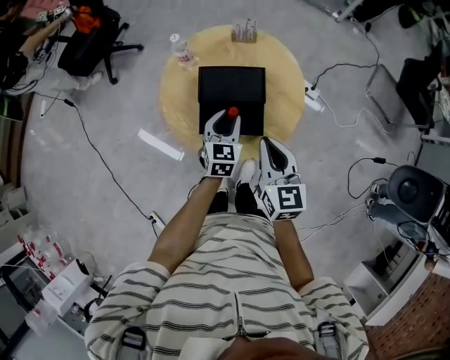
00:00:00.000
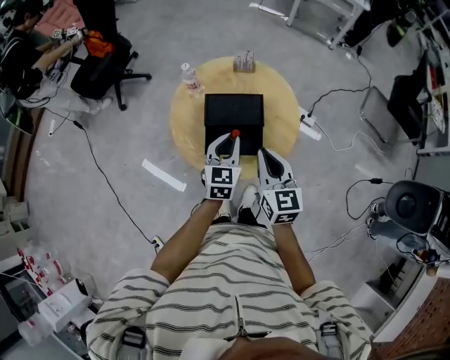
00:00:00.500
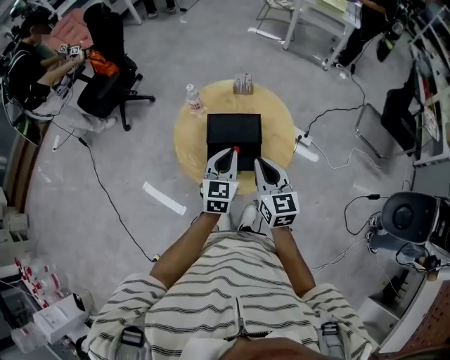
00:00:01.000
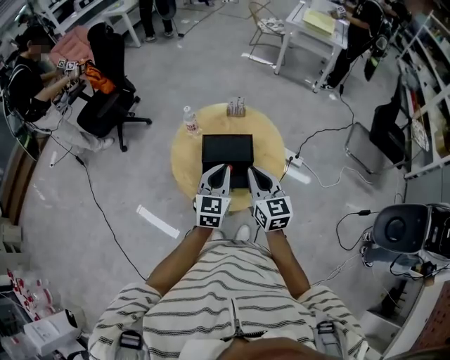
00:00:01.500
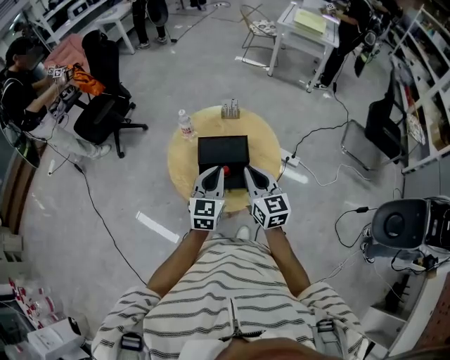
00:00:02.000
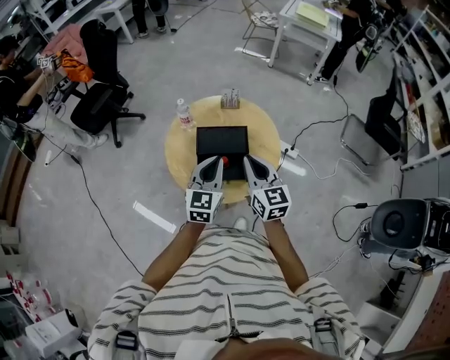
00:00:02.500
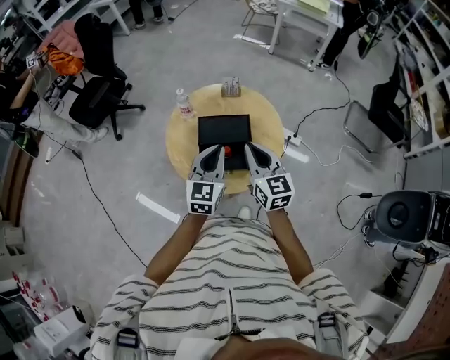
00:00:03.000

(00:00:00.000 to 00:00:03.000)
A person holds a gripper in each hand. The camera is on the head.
00:00:00.000 - 00:00:01.500: The left gripper moves upward, roughly 15 cm, and closes up; the right gripper moves upward, approximately 5 cm.
00:00:01.500 - 00:00:03.000: The grippers move only a little.

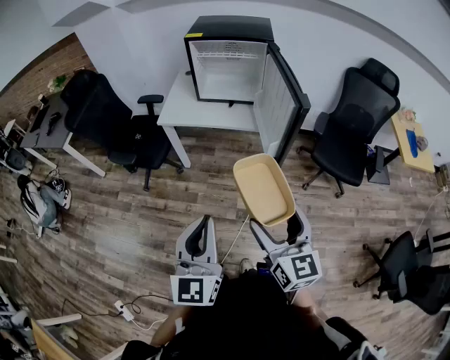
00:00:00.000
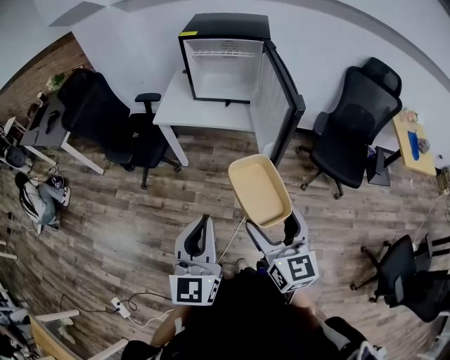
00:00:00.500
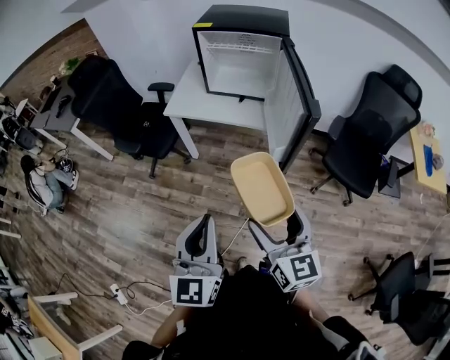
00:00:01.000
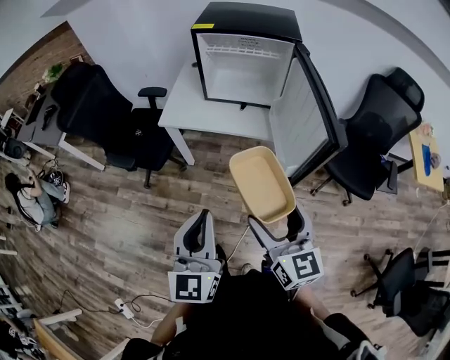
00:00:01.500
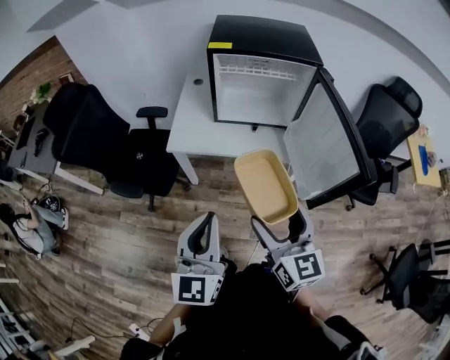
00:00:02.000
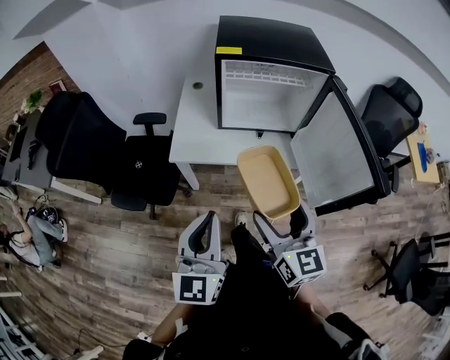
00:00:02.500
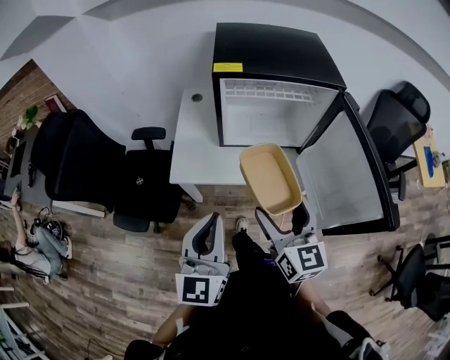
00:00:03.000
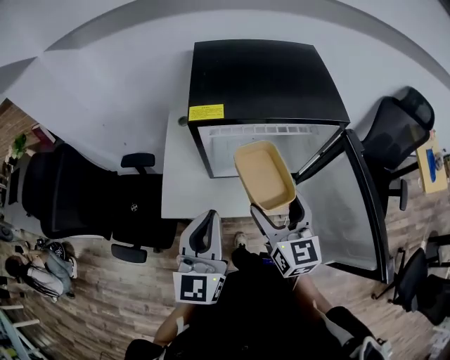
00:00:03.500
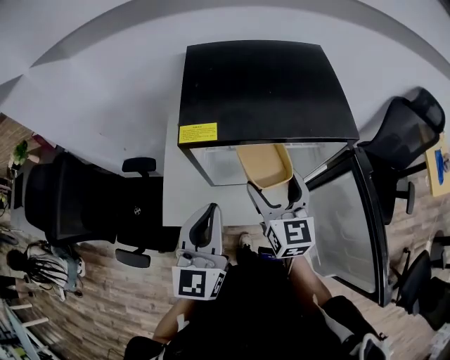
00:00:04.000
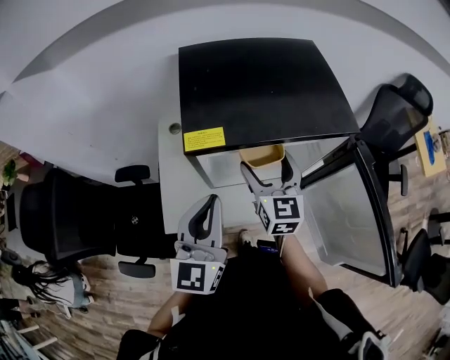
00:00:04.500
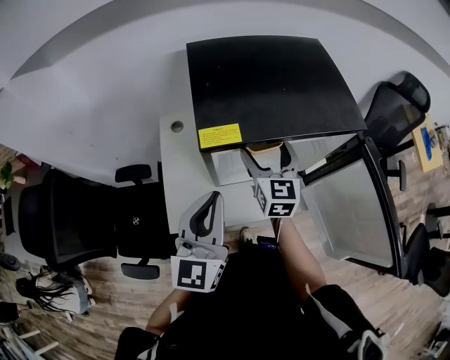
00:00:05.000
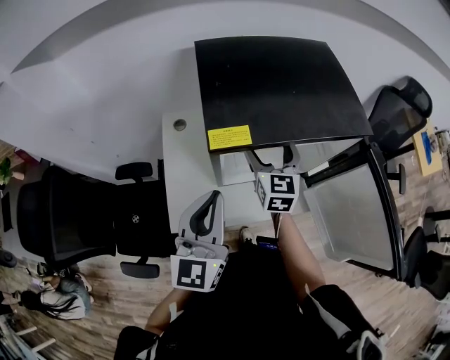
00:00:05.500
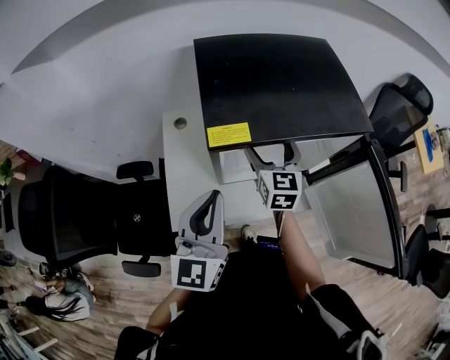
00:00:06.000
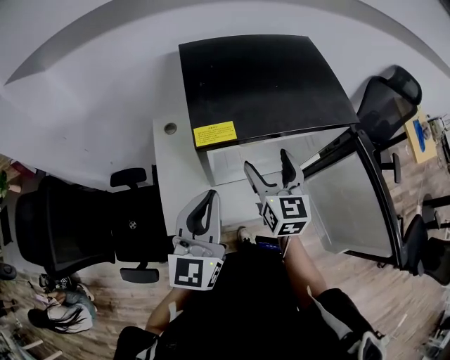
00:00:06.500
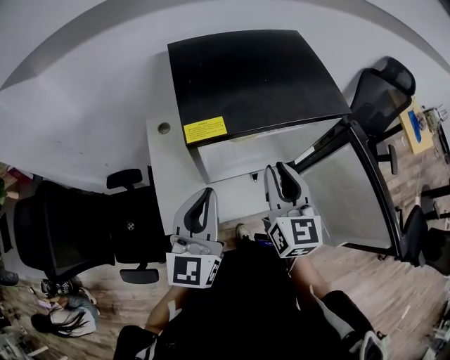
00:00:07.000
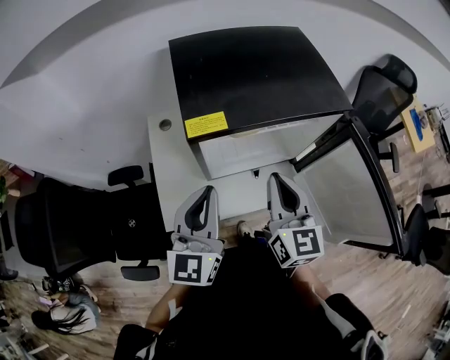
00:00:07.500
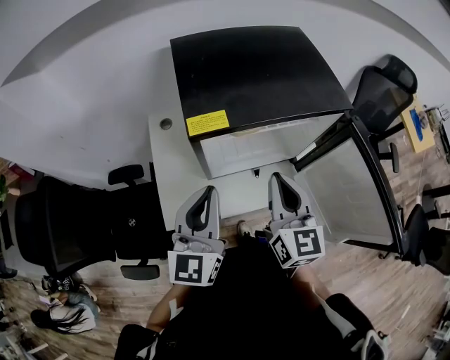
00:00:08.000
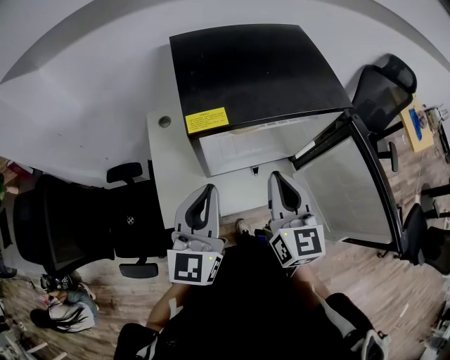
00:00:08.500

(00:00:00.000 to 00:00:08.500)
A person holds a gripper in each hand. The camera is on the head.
00:00:00.000 - 00:00:02.000: The left gripper goes some 30 cm forward. The right gripper goes roughly 30 cm forward and to the left.
00:00:02.000 - 00:00:04.000: The two grippers travel together, forward, some 40 cm.
00:00:04.000 - 00:00:06.500: The right gripper goes forward and returns, approximately 10 cm each way. Meanwhile the left gripper shifts some 5 cm to the left.
00:00:06.500 - 00:00:08.500: The right gripper goes about 10 cm backward, and closes.

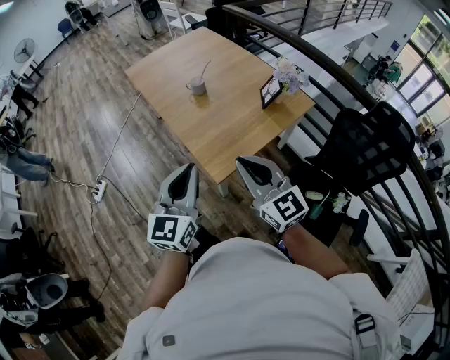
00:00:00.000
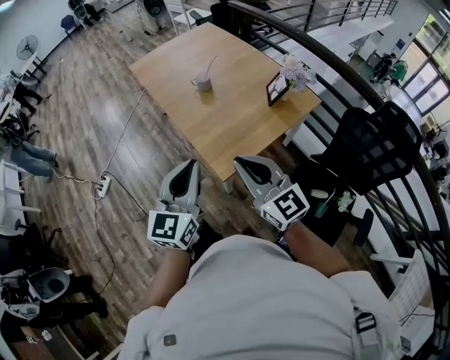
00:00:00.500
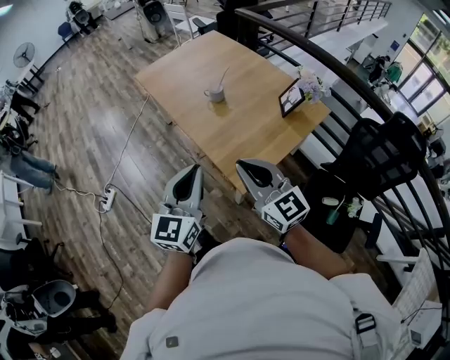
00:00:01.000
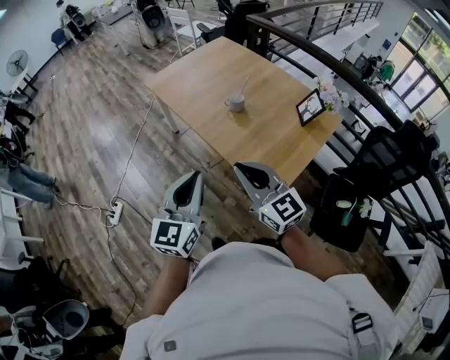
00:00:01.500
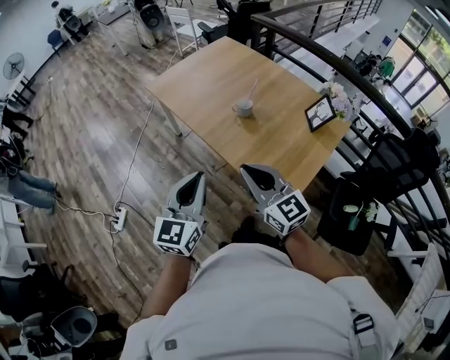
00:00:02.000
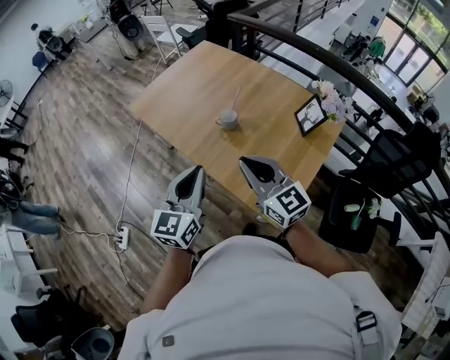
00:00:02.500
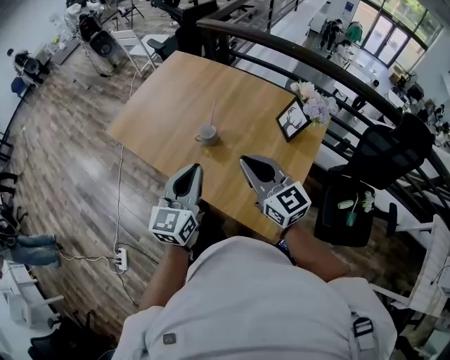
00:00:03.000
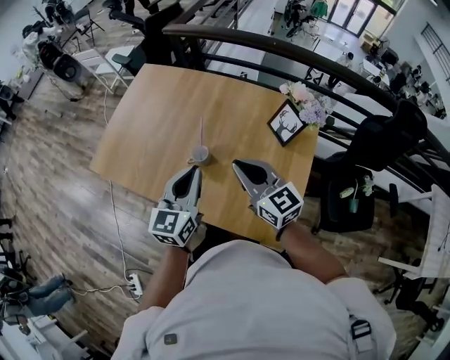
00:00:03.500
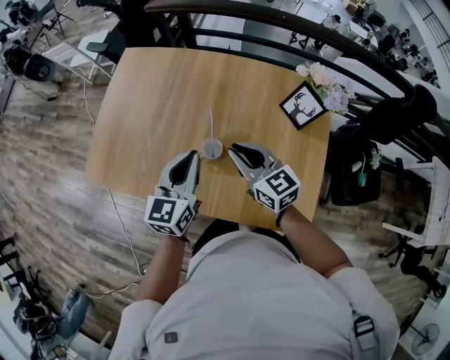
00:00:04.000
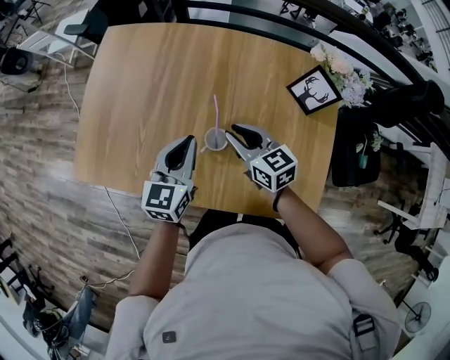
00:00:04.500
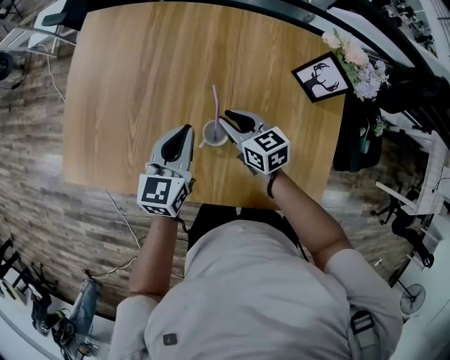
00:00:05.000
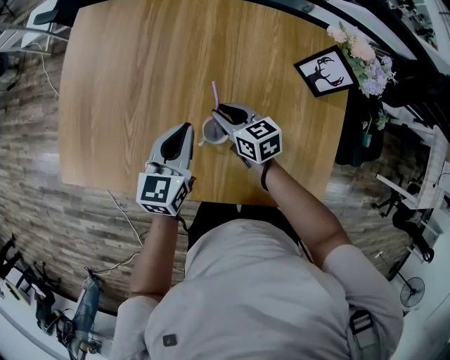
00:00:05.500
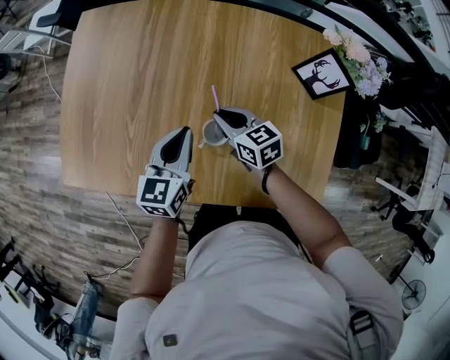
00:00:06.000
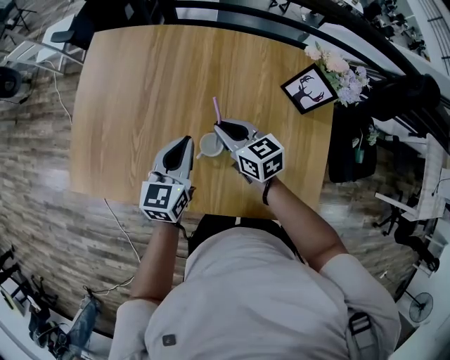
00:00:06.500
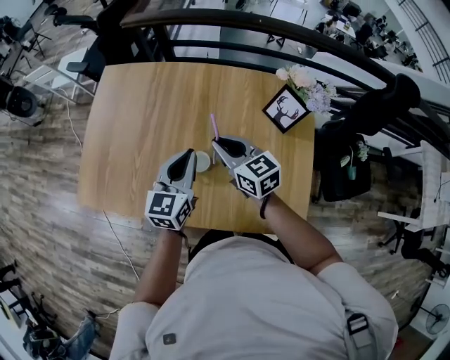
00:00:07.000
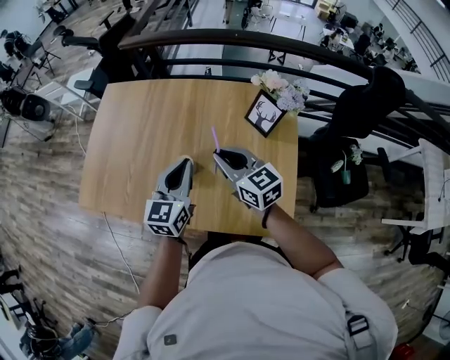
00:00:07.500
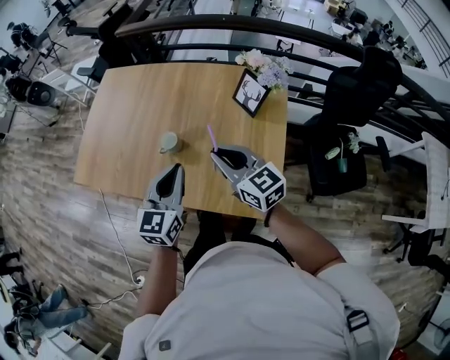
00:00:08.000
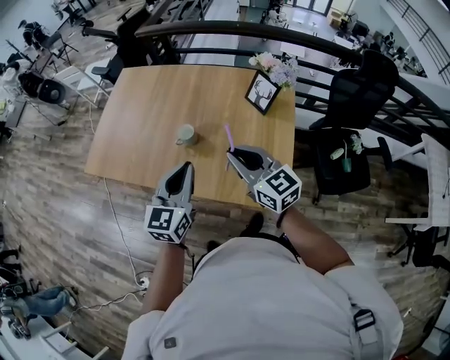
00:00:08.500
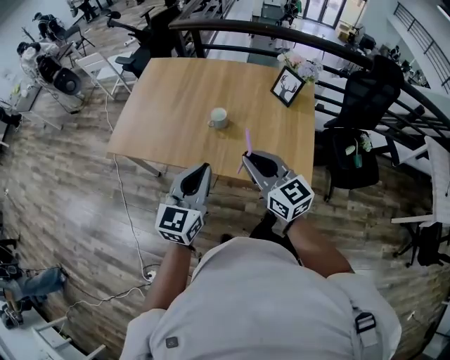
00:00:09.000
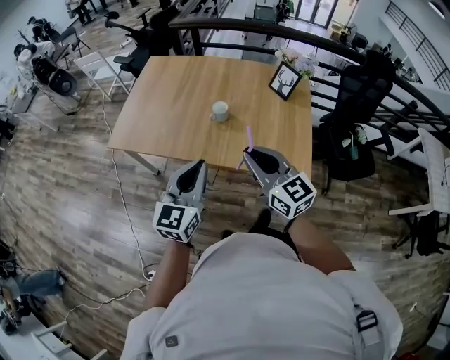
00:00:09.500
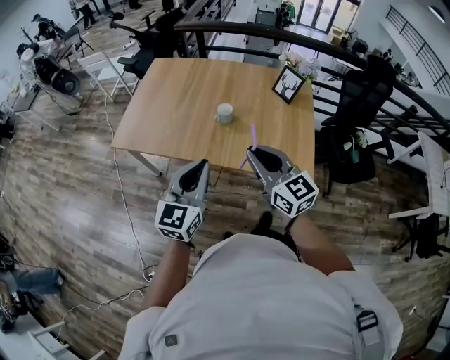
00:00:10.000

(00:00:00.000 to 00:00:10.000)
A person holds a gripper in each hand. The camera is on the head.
00:00:00.000 - 00:00:02.000: The two grippers go roughly 35 cm to the left and forward.
00:00:02.000 - 00:00:04.000: The pair of grippers is taken some 50 cm. The left gripper rotates approximately 30 degrees; the right gripper rotates approximately 30 degrees.
00:00:04.000 - 00:00:06.000: Both grippers travel together downward and forward, roughly 20 cm. The right gripper turns by approximately 20 degrees.
00:00:06.000 - 00:00:08.000: The left gripper goes some 35 cm backward, upward and to the right. The right gripper is displaced upward, backward and to the right by roughly 40 cm, and changes its angle by some 30 degrees.
00:00:08.000 - 00:00:10.000: The left gripper heads to the left, backward and upward, covering about 20 cm, while the right gripper is displaced backward, to the left and upward by about 20 cm.

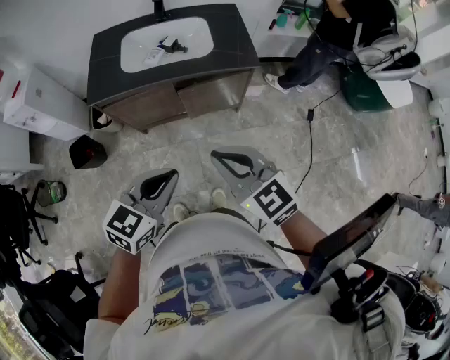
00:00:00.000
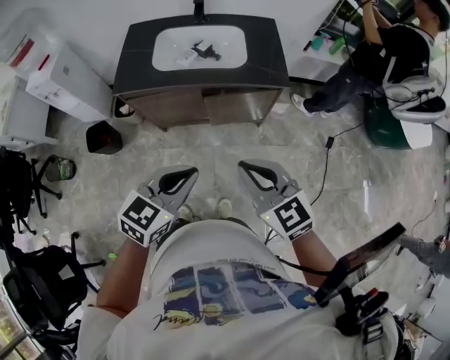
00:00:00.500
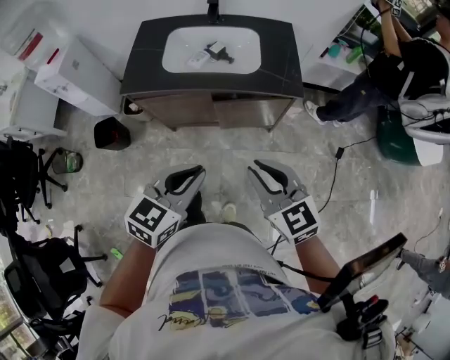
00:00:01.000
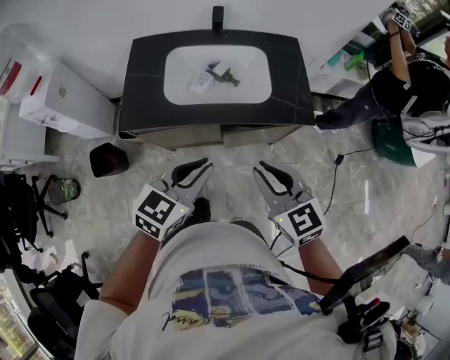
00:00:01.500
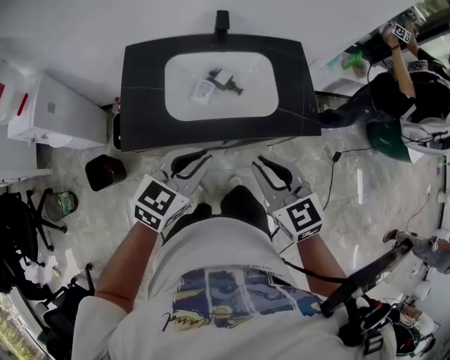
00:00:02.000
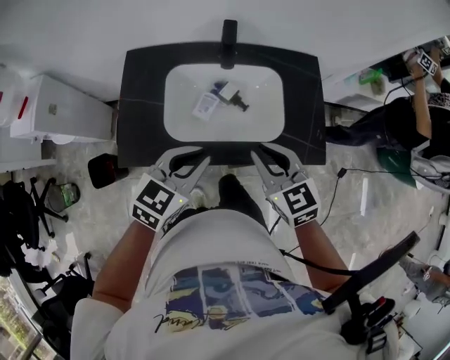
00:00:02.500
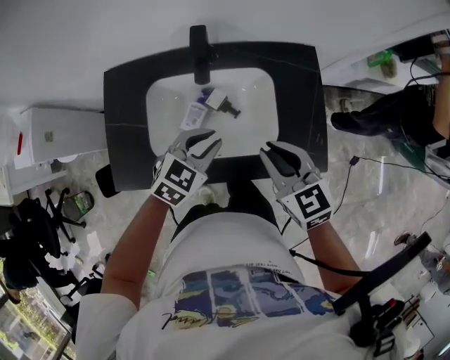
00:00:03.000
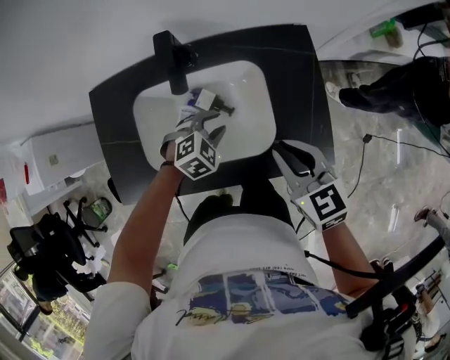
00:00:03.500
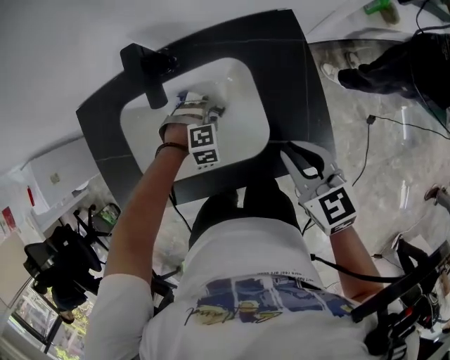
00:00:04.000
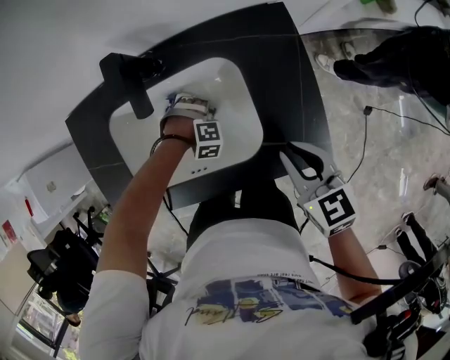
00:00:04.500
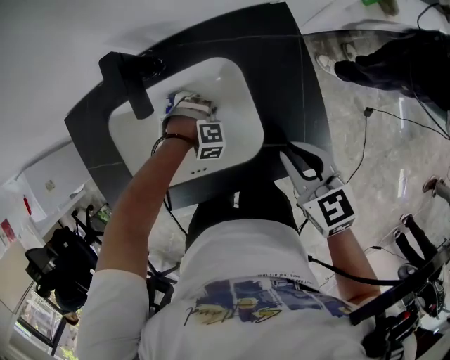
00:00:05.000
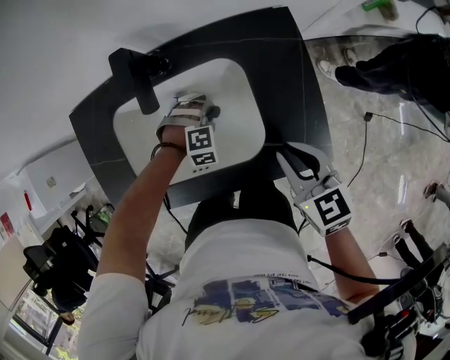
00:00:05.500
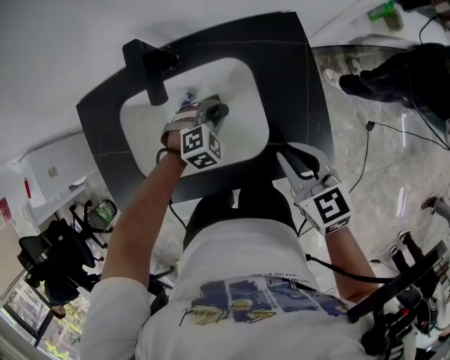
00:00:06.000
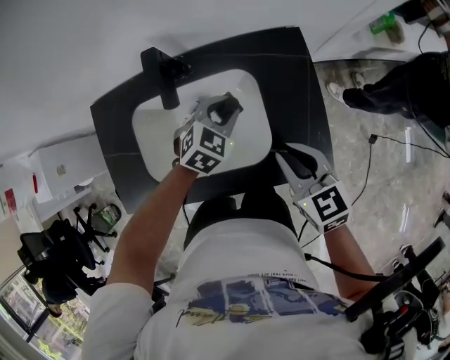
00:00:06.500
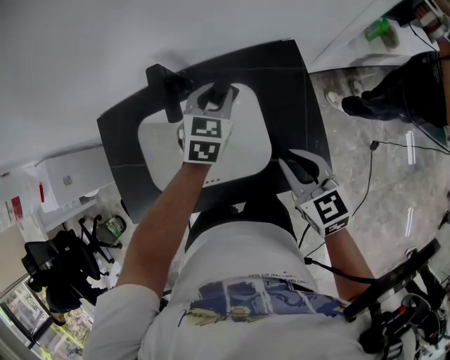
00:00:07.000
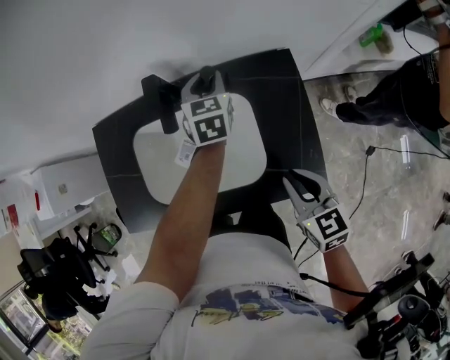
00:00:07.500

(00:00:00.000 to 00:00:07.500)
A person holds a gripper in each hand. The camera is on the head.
00:00:00.000 - 00:00:02.000: The two grippers go some 30 cm forward.
00:00:02.000 - 00:00:04.000: The left gripper heads downward, covering about 30 cm, tilts its fingers about 50 degrees downward, and opens up; the right gripper changes place by some 30 cm.
00:00:05.500 - 00:00:07.500: The left gripper moves upward and forward, approximately 30 cm, and rotates around the line of its fingers by approximately 80 degrees, counterclockwise from behind.
